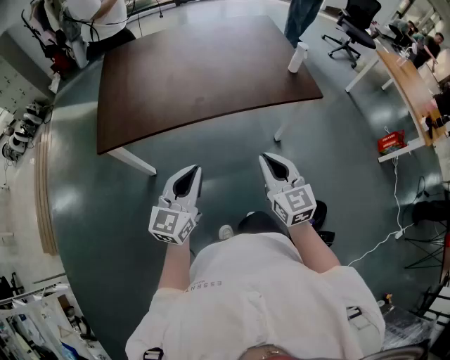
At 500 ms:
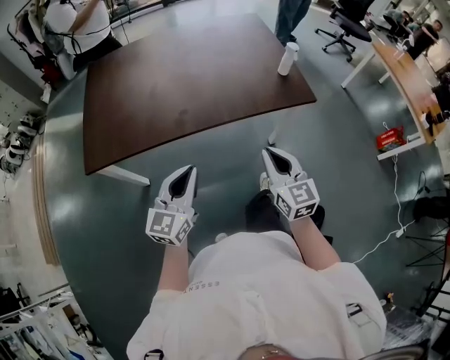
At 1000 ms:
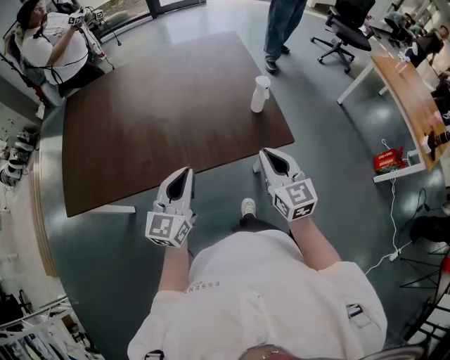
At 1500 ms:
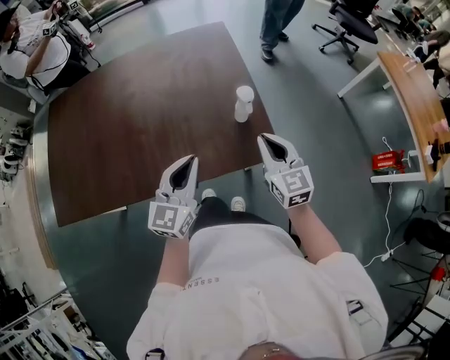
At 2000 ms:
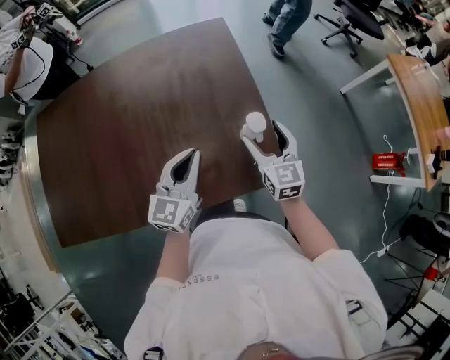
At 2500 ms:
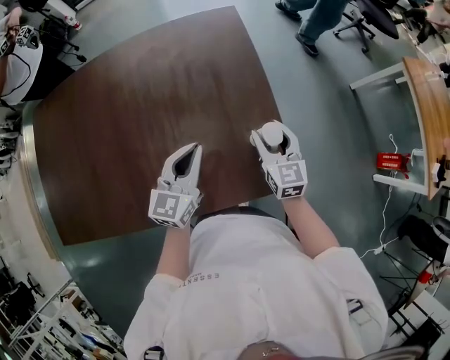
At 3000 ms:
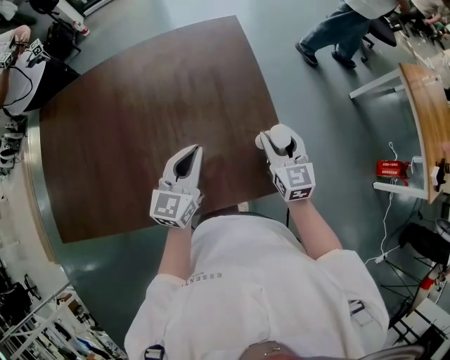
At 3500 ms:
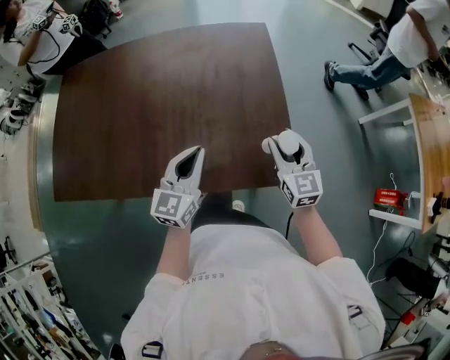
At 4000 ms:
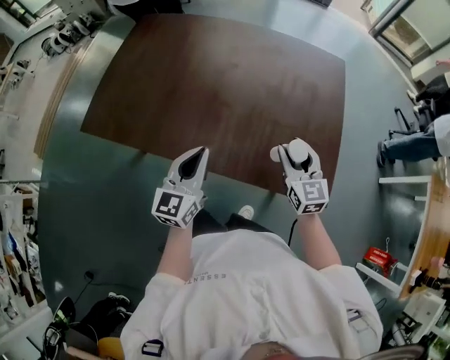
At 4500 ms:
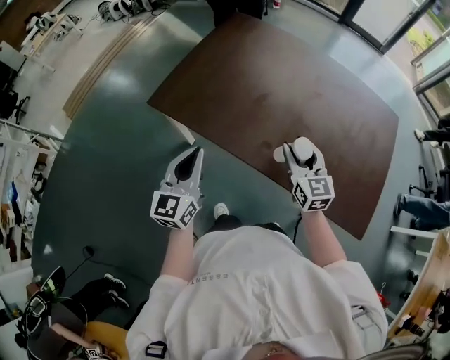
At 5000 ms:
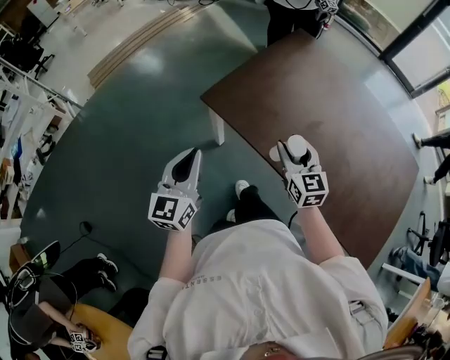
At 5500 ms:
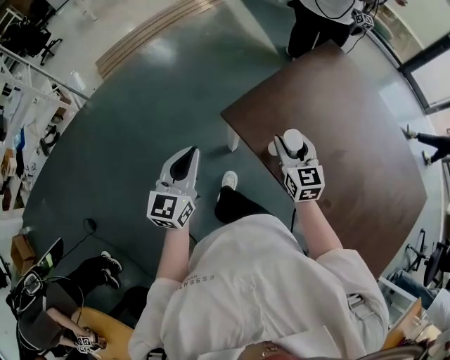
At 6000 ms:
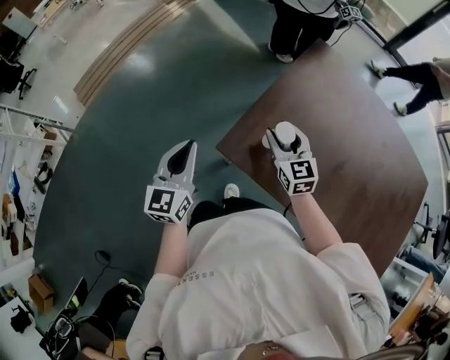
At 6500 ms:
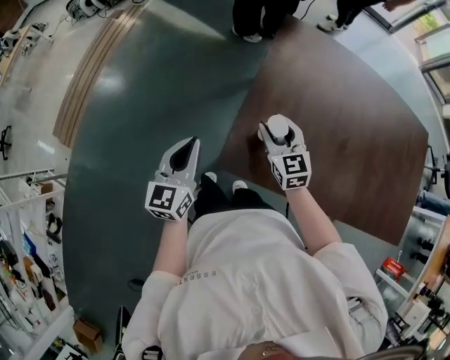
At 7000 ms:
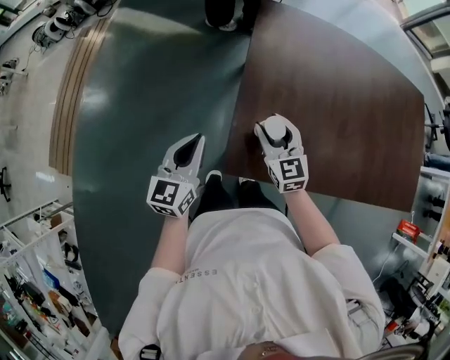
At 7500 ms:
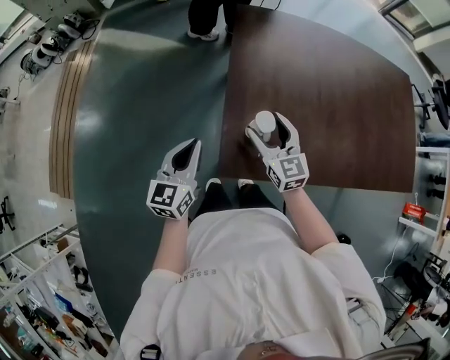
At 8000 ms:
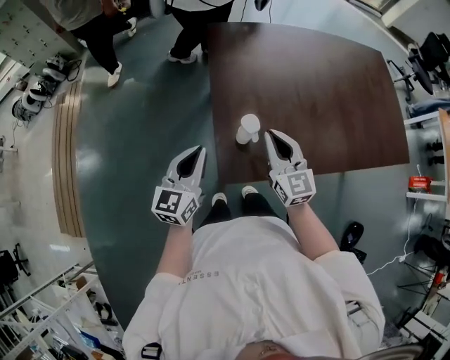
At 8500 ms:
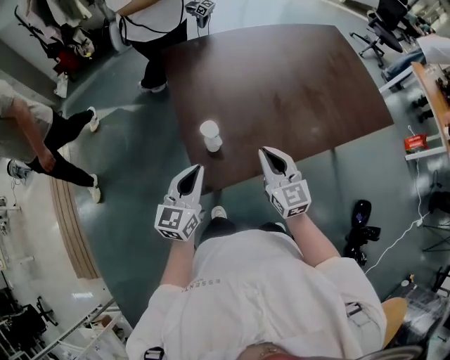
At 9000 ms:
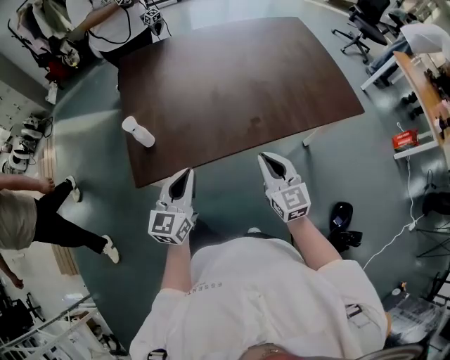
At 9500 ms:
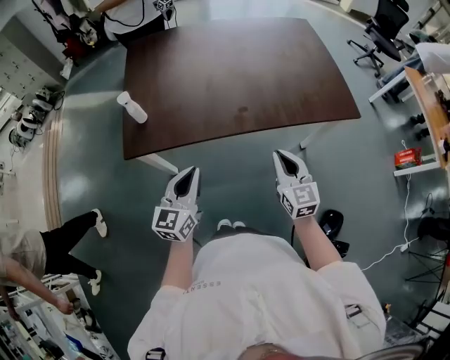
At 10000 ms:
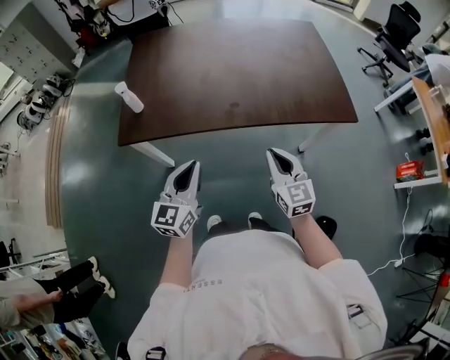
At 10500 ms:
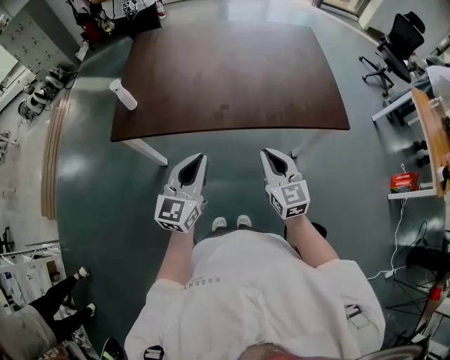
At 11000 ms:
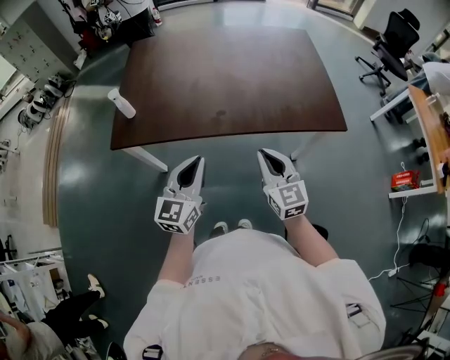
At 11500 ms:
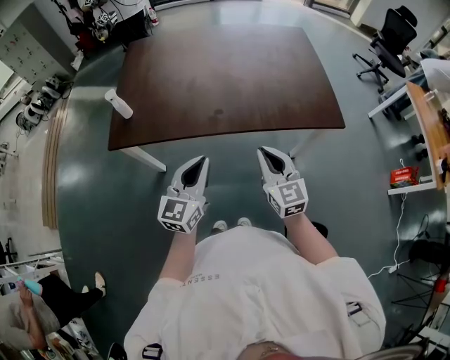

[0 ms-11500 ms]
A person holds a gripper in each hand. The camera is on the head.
0 ms to 2000 ms: Both grippers are carried forward and to the right, approximately 60 cm. The right gripper opens.
2000 ms to 4000 ms: The left gripper moves some 25 cm, and changes its angle by about 30 degrees; the right gripper changes place by about 15 cm, swivels about 30 degrees, and closes.
4000 ms to 6000 ms: Both grippers are carried roughly 70 cm. The left gripper changes its angle by approximately 30 degrees. The right gripper turns by about 30 degrees.
6000 ms to 7500 ms: The left gripper moves some 15 cm, and turns by approximately 40 degrees. Meanwhile the right gripper changes its angle by about 30 degrees, and opens up.
7500 ms to 9500 ms: The pair of grippers is taken to the right and backward, about 60 cm. The right gripper closes.
9500 ms to 11500 ms: The right gripper is displaced to the right by about 5 cm; the left gripper is displaced to the right by some 15 cm.

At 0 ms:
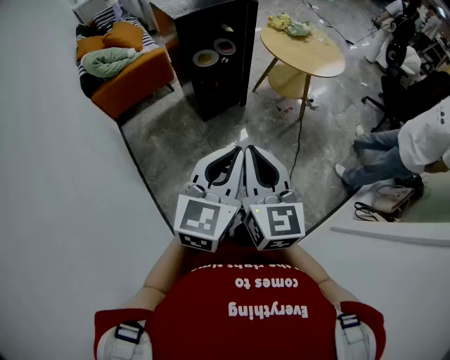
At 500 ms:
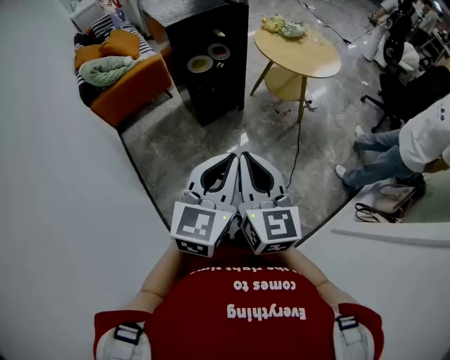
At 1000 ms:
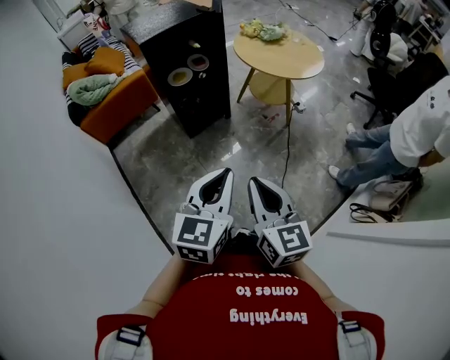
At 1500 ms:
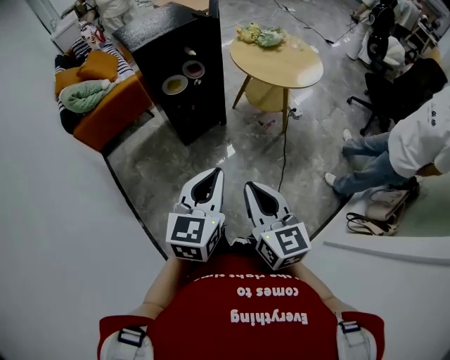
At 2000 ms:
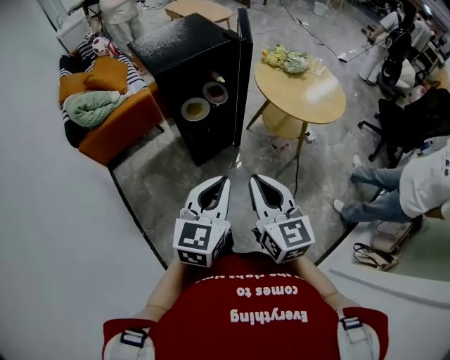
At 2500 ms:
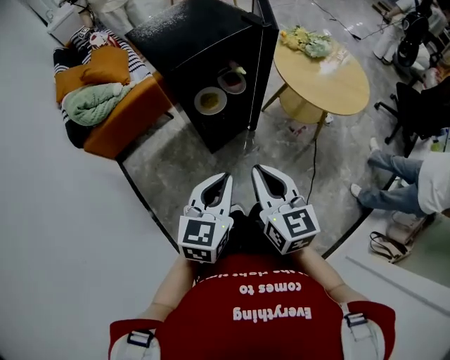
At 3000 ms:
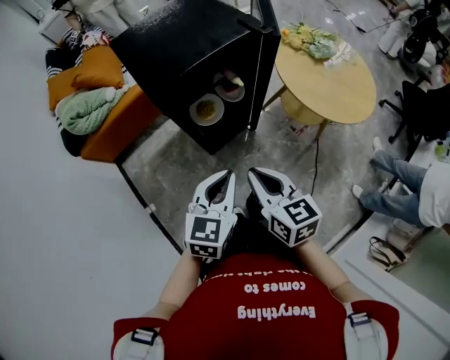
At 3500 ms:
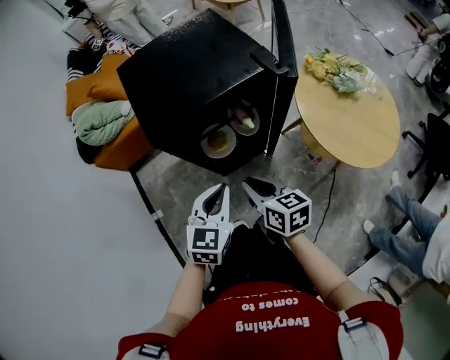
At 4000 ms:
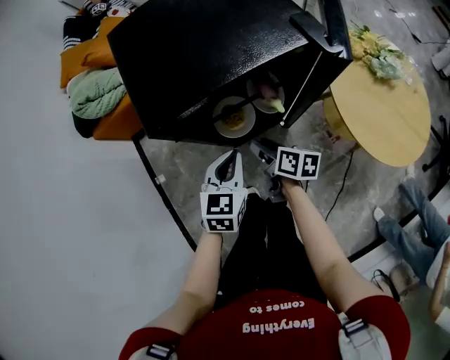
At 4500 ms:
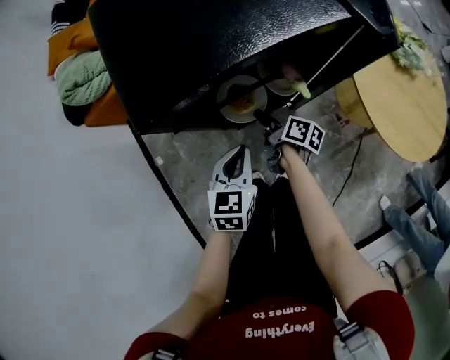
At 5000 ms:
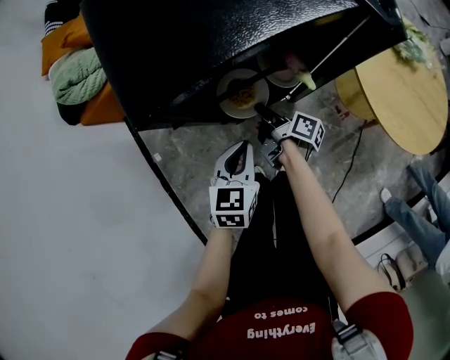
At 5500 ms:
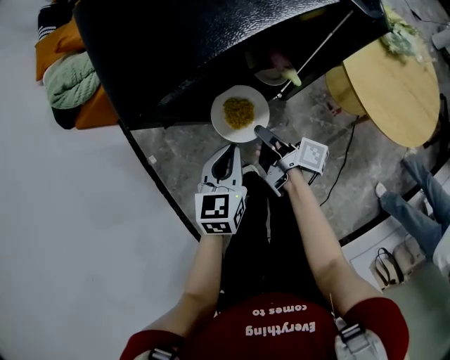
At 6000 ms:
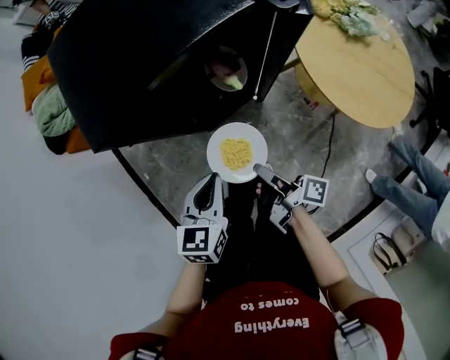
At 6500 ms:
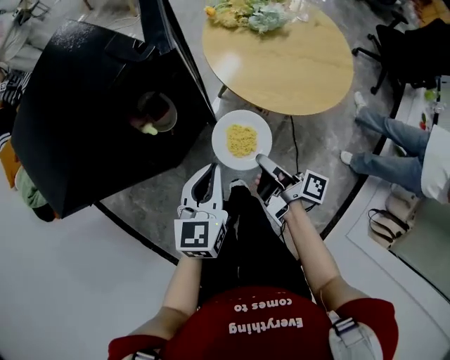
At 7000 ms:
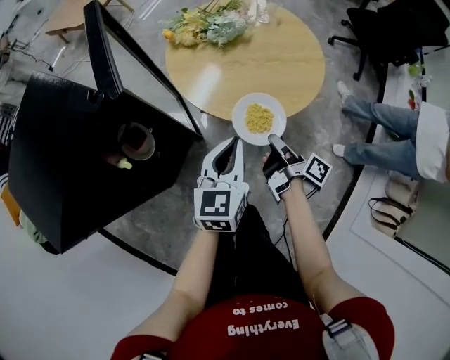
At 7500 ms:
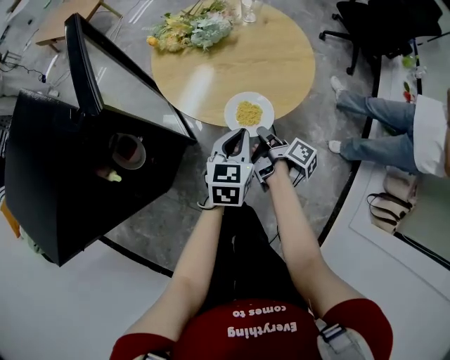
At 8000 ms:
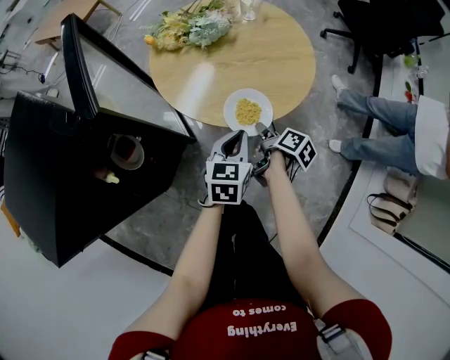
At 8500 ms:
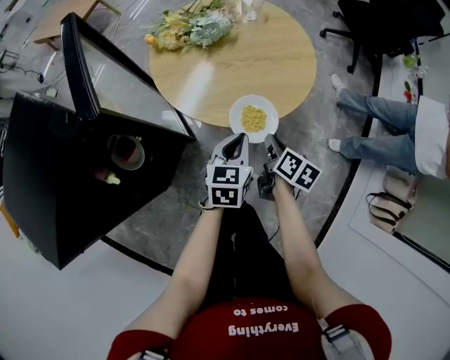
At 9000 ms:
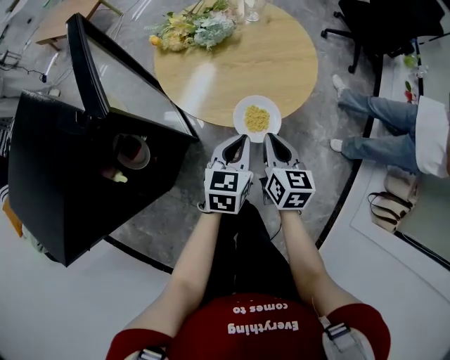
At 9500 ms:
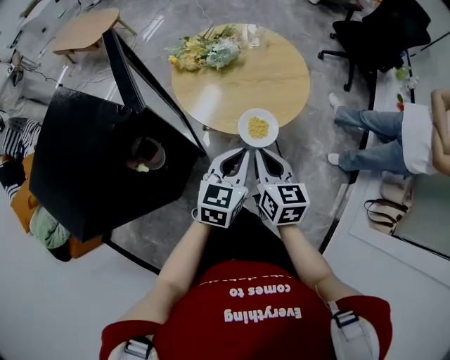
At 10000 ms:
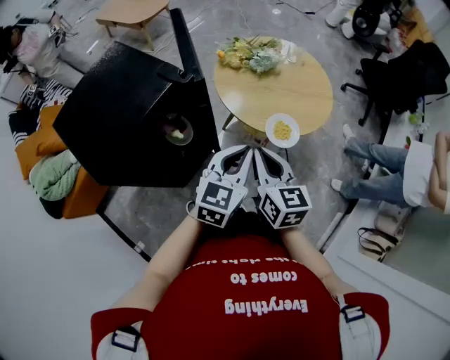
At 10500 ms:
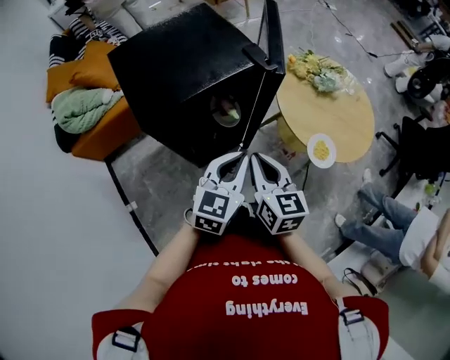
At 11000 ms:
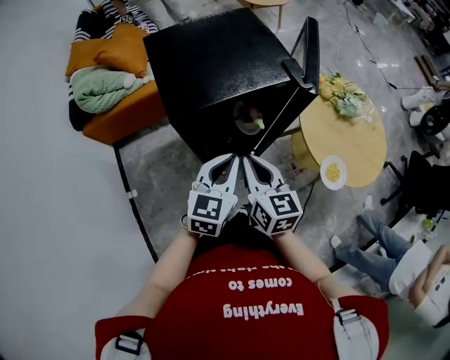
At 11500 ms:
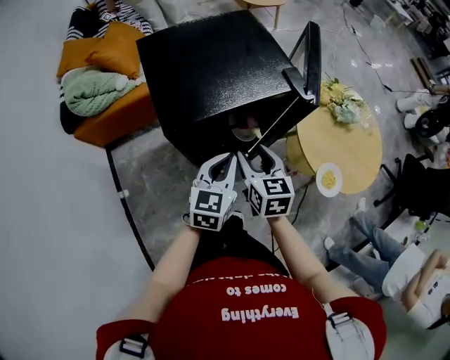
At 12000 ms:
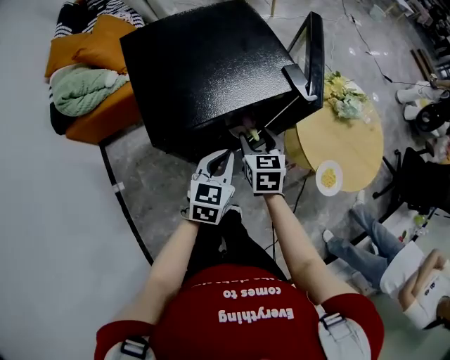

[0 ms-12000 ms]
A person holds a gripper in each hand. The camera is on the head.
0 ms to 2000 ms: The two grippers go about 25 cm forward.
2000 ms to 4000 ms: The right gripper ends up about 50 cm from where it was, turns by some 60 degrees, and opens up; the left gripper changes place by some 40 cm, and changes its angle by roughly 20 degrees.
4000 ms to 6000 ms: The right gripper shifts some 15 cm backward, turns by approximately 40 degrees, and closes up. The left gripper goes some 10 cm backward.
6000 ms to 8000 ms: The two grippers travel together, approximately 40 cm. The right gripper points its fingers about 30 degrees further downward, and opens. Meanwhile the left gripper changes its angle by some 40 degrees.
8000 ms to 10000 ms: The left gripper is displaced upward, backward and to the left by about 30 cm, while the right gripper shifts roughly 35 cm upward, to the left and backward, rotates around the line of its fingers by approximately 70 degrees, counterclockwise from behind, and closes its fingers.
10000 ms to 12000 ms: The right gripper changes place by approximately 30 cm, rotates about 40 degrees, and opens its fingers. Meanwhile the left gripper changes place by some 30 cm, and swivels some 40 degrees.

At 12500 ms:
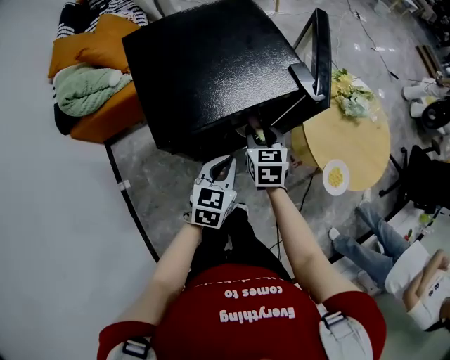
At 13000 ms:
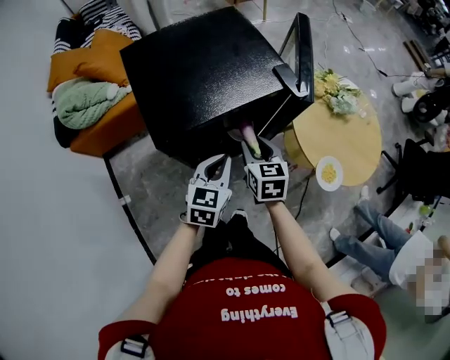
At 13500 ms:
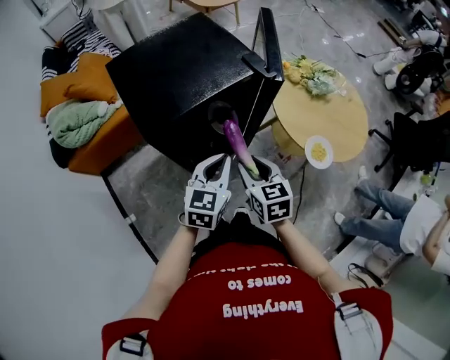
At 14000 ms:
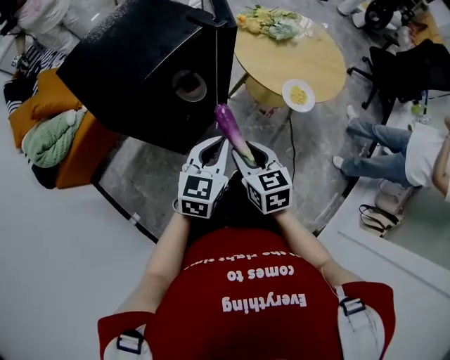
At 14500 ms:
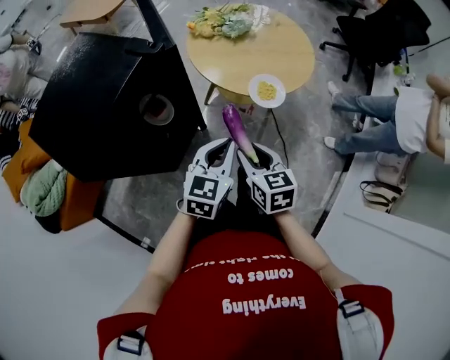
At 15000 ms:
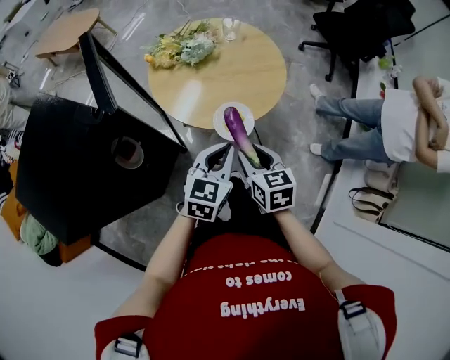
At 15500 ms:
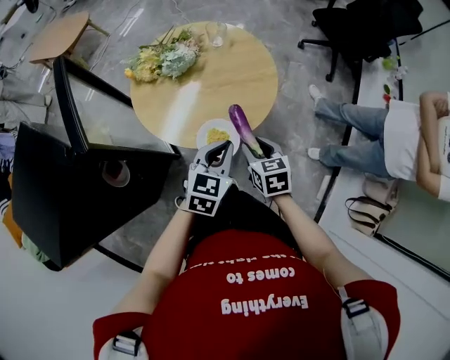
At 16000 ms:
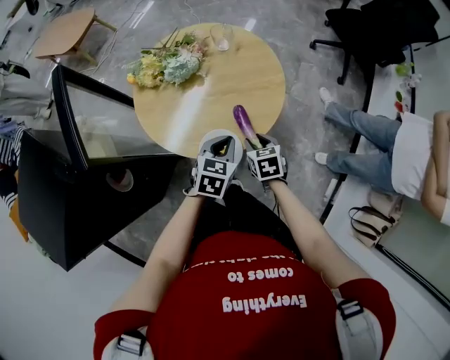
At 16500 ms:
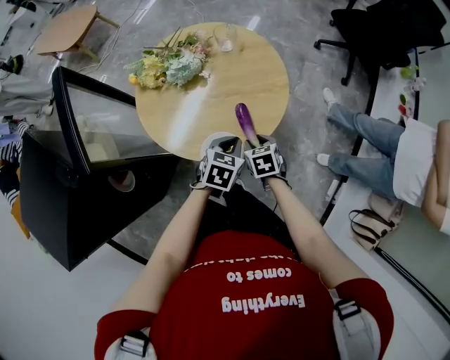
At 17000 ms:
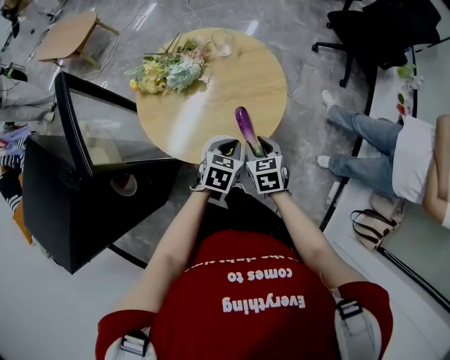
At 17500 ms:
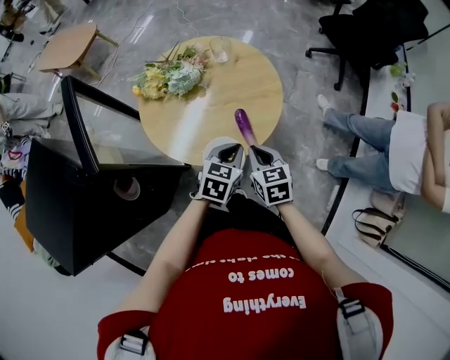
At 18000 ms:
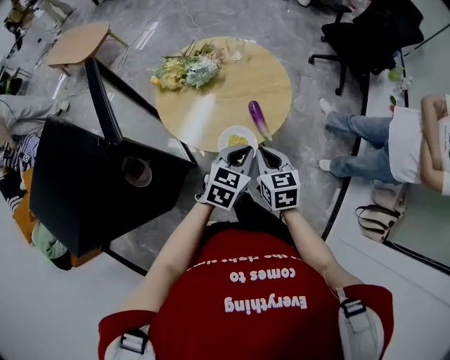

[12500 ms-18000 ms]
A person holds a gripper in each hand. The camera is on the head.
12500 ms to 14500 ms: The right gripper changes place by some 30 cm, and swivels approximately 30 degrees. Meanwhile the left gripper changes place by about 25 cm, and turns by some 40 degrees.
14500 ms to 16000 ms: The two grippers go roughly 40 cm forward, to the right and downward.
16000 ms to 18000 ms: The grippers both shift upward and backward by some 15 cm. The right gripper closes its fingers.
